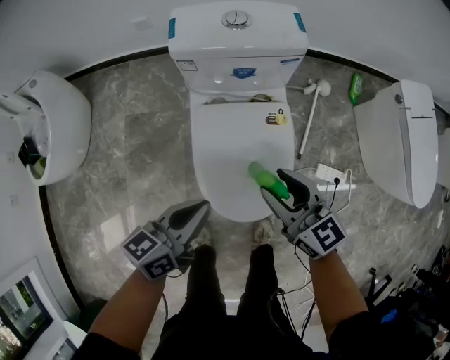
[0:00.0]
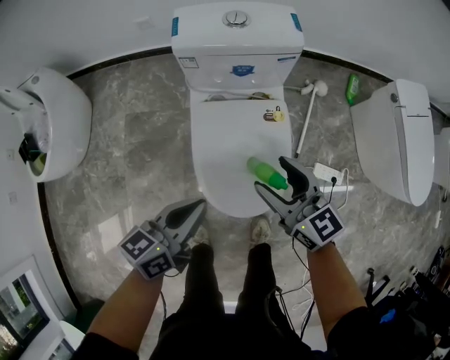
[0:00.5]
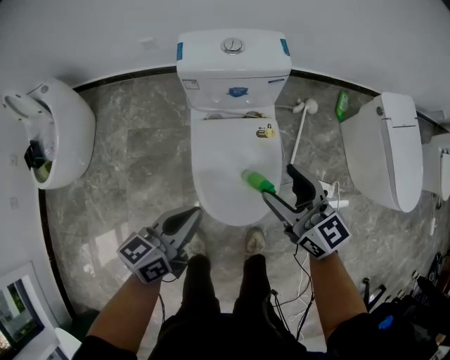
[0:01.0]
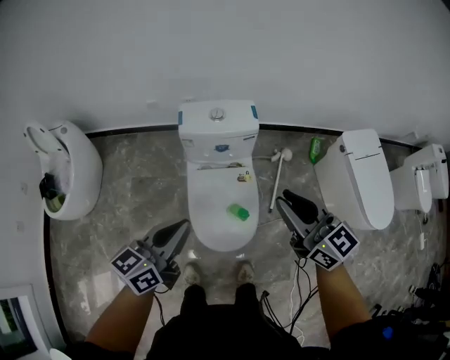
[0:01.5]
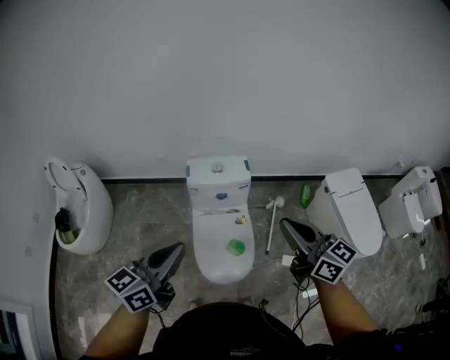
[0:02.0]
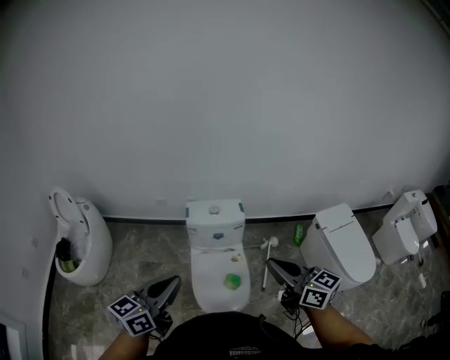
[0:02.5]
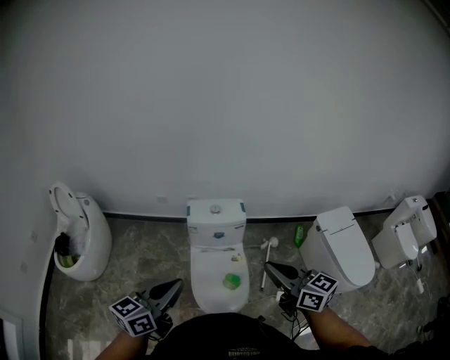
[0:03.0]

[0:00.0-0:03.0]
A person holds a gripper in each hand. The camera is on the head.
0:00.0 to 0:01.5: Both grippers move upward, about 35 cm. The right gripper closes its fingers.
0:01.5 to 0:03.0: The grippers both shift upward and backward by approximately 20 cm.

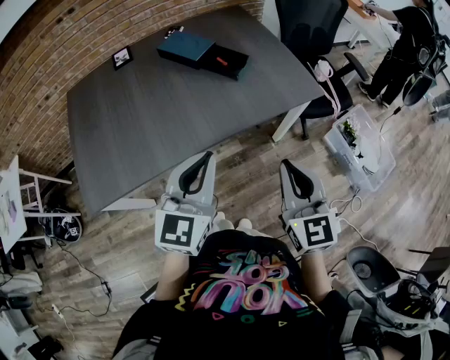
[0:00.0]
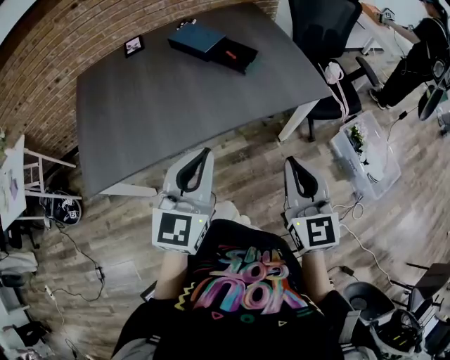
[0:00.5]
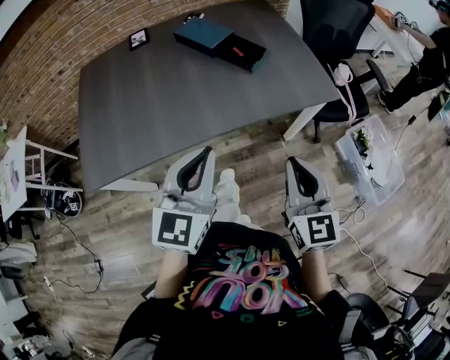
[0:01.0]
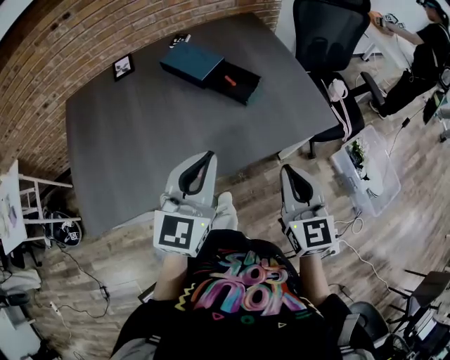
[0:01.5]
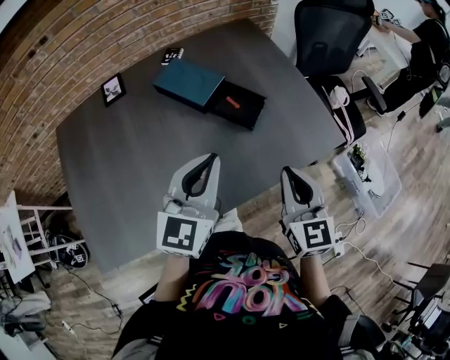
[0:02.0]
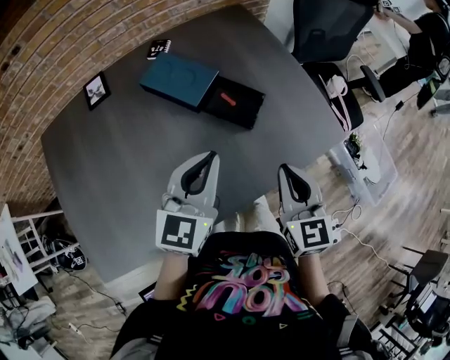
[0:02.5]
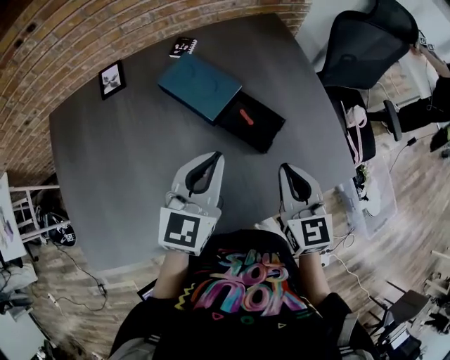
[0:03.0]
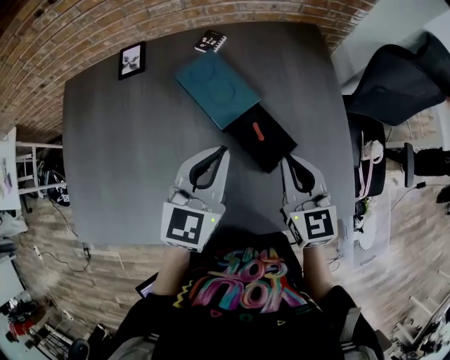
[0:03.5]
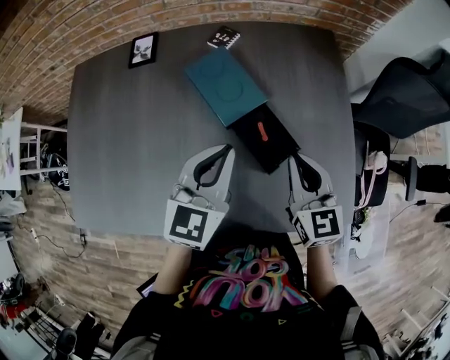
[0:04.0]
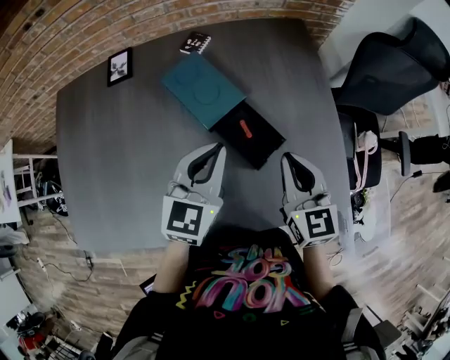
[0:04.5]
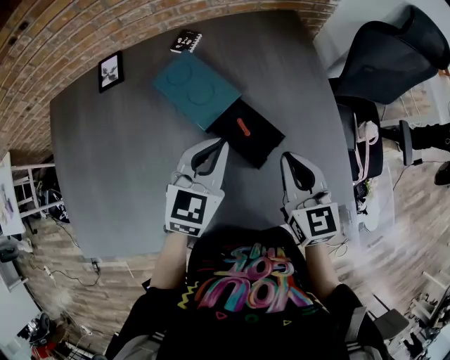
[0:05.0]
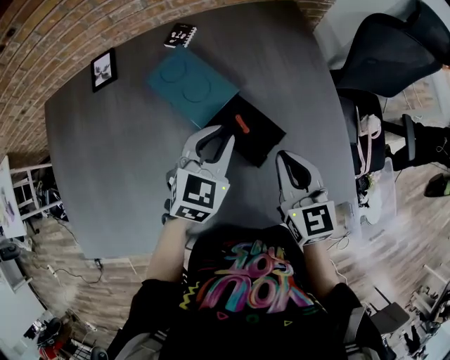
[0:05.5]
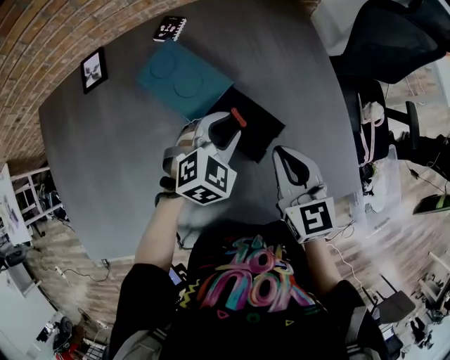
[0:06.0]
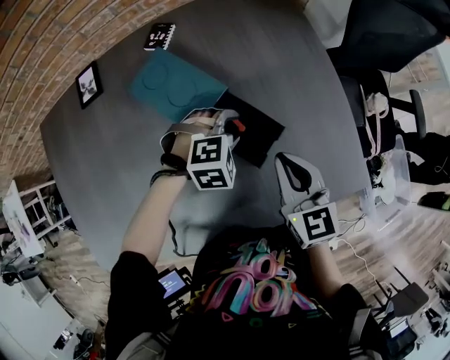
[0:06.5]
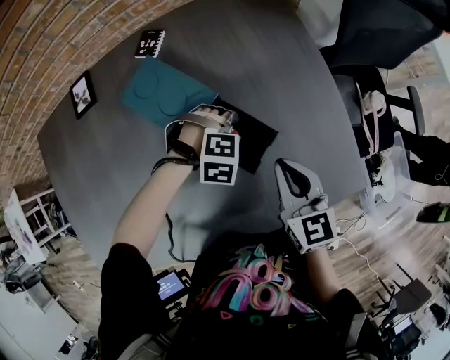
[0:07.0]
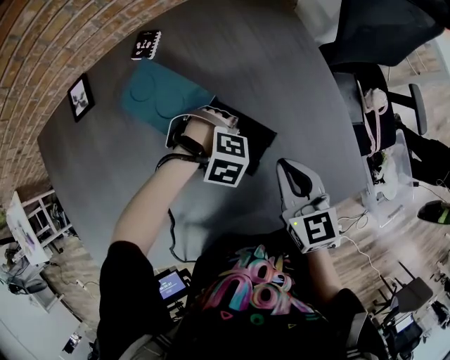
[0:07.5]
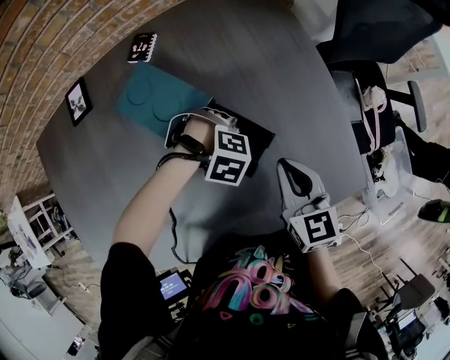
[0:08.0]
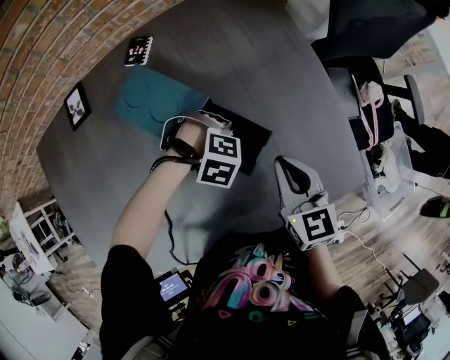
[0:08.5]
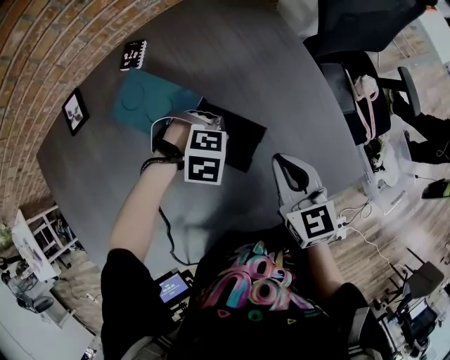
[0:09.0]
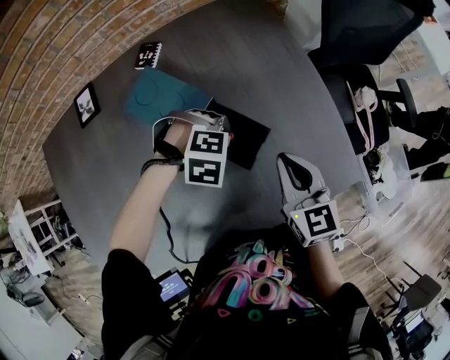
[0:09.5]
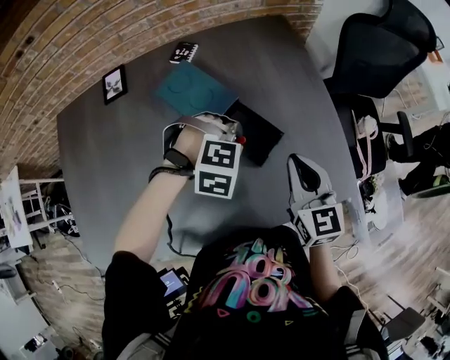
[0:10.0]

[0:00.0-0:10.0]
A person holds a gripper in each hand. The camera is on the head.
0:00.0 to 0:02.0: The grippers both shift forward by some 25 cm.
0:02.0 to 0:04.0: The right gripper moves roughly 25 cm, and turns by approximately 30 degrees; the left gripper changes place by roughly 15 cm, and rotates approximately 20 degrees.
0:04.0 to 0:06.0: The right gripper moves approximately 5 cm. The left gripper shifts approximately 15 cm downward and to the right, rotates about 50 degrees, and opens up.
0:06.0 to 0:08.0: The right gripper moves roughly 5 cm, while the left gripper is displaced downward by approximately 10 cm, and points its fingers some 40 degrees further downward.
0:08.0 to 0:10.0: The right gripper goes roughly 10 cm upward, while the left gripper shifts about 15 cm upward, and swivels roughly 30 degrees.

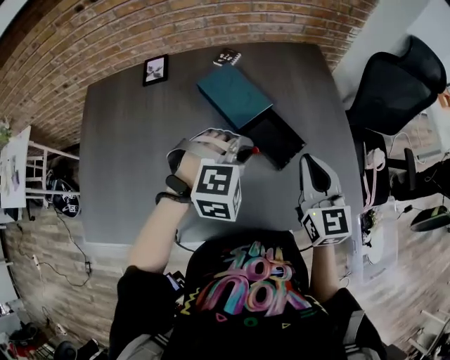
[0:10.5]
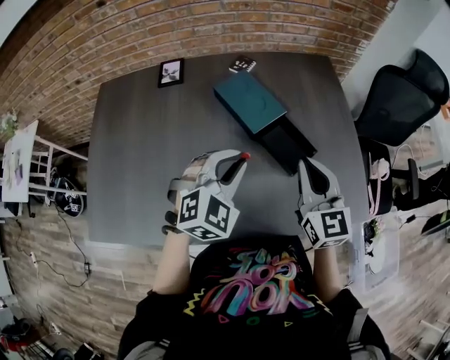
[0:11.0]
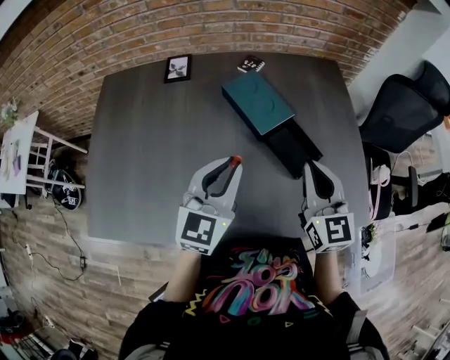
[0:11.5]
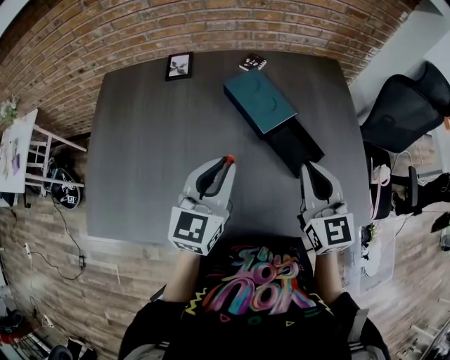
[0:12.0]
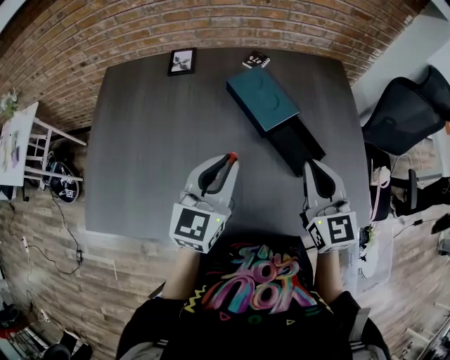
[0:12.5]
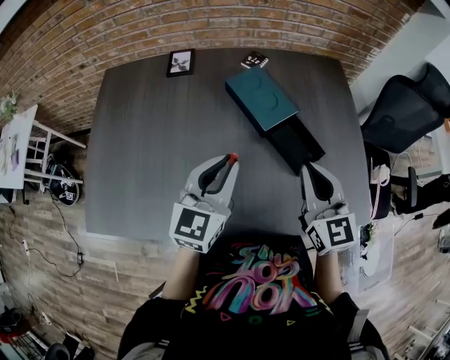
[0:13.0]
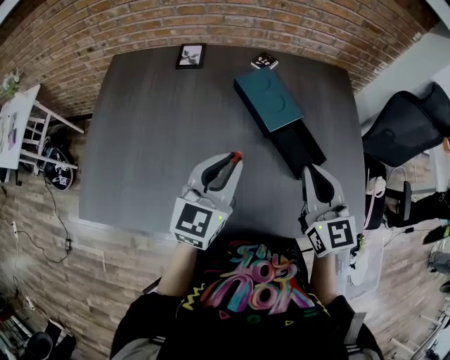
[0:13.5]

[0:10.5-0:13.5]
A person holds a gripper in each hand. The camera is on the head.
0:10.5 to 0:12.0: The right gripper goes roughly 10 cm to the left. The left gripper is displaced to the left and upward by some 15 cm, and rolls counterclockwise, seen from behind, by about 70 degrees.
0:12.0 to 0:13.5: The grippers stay close to where they were, moving slightly.

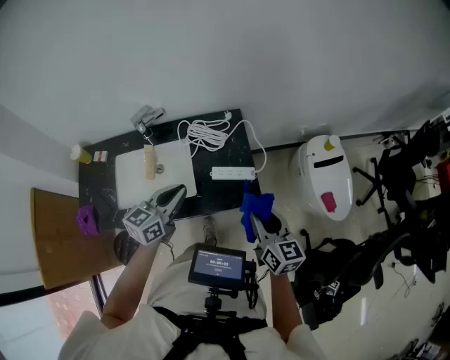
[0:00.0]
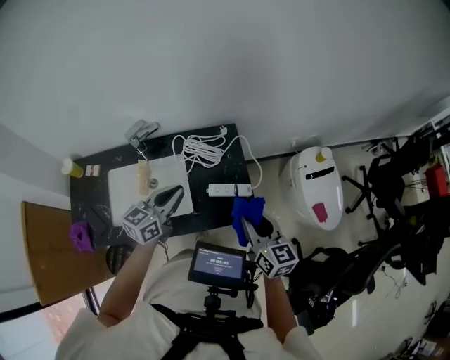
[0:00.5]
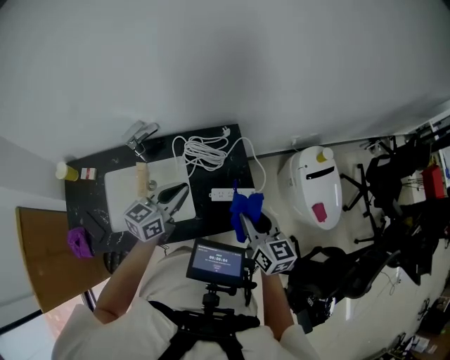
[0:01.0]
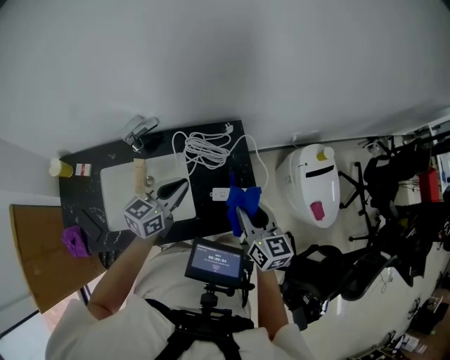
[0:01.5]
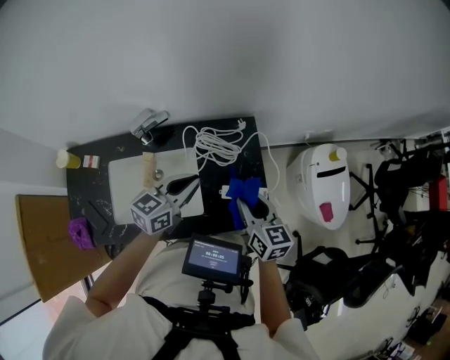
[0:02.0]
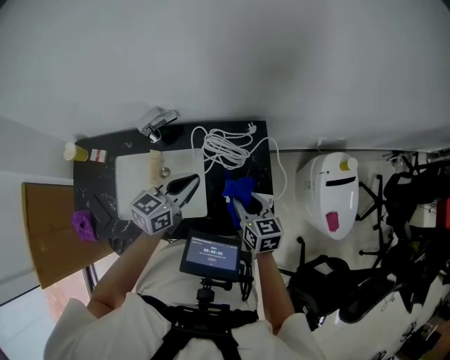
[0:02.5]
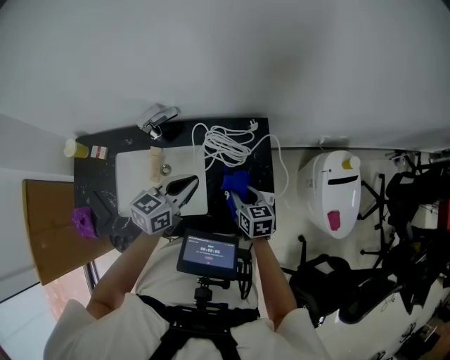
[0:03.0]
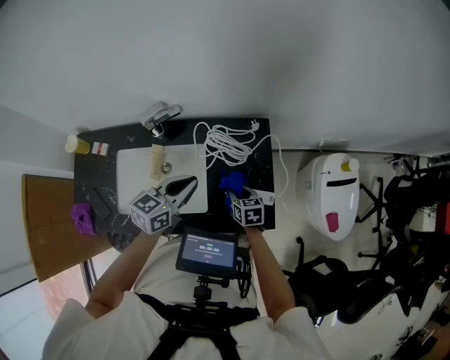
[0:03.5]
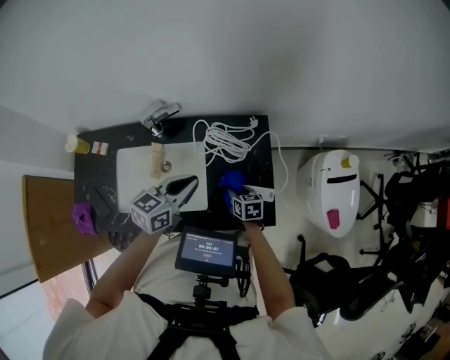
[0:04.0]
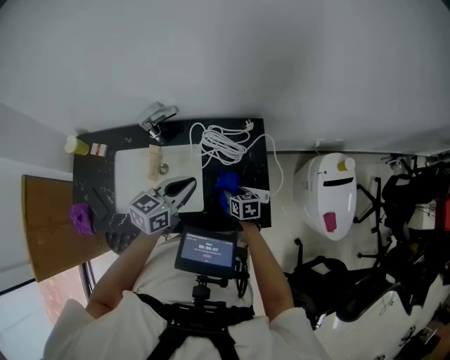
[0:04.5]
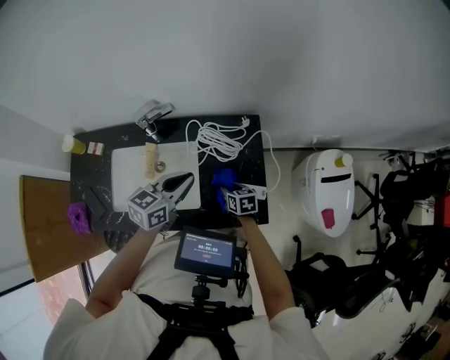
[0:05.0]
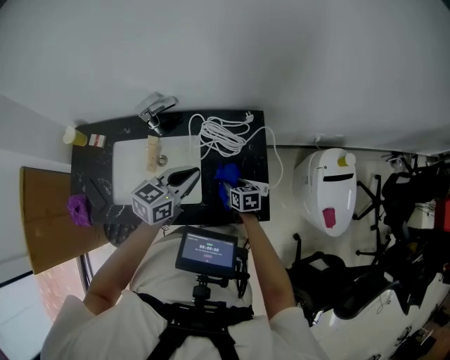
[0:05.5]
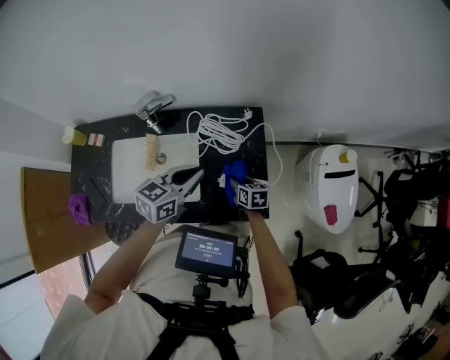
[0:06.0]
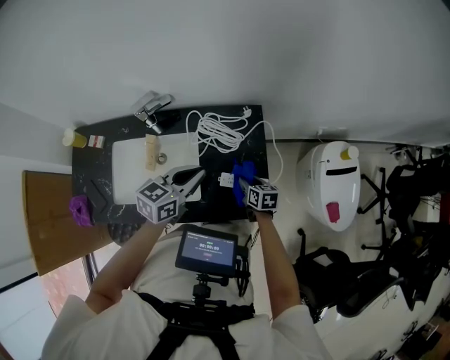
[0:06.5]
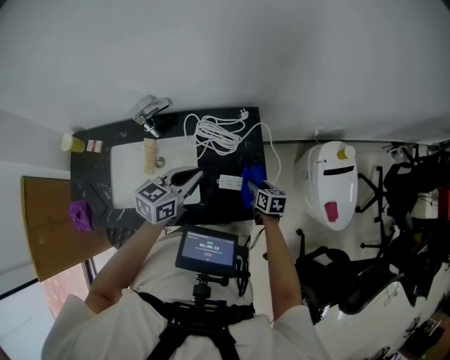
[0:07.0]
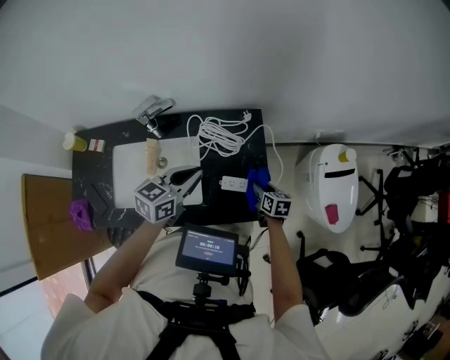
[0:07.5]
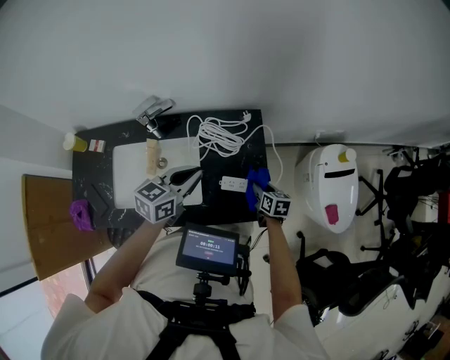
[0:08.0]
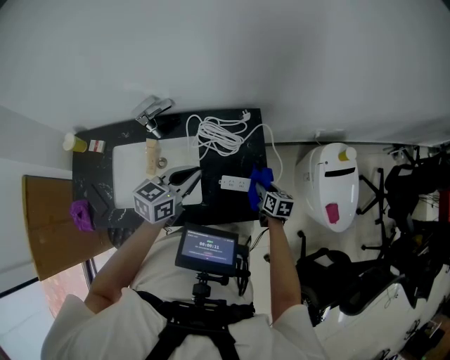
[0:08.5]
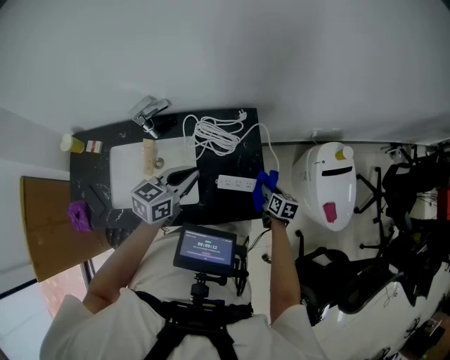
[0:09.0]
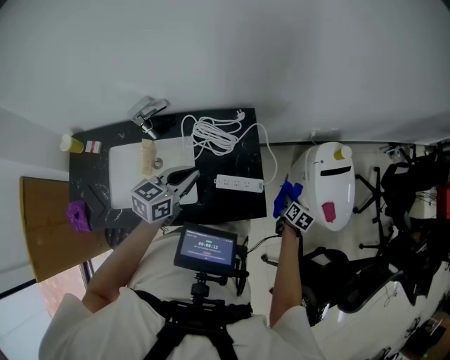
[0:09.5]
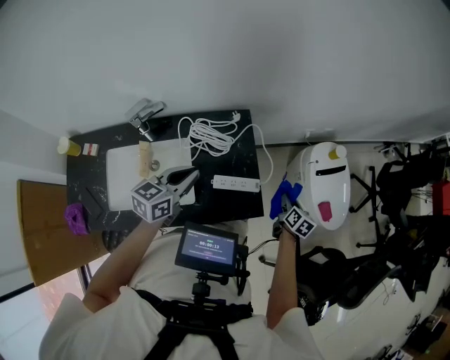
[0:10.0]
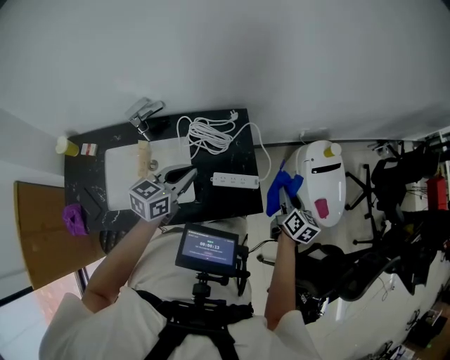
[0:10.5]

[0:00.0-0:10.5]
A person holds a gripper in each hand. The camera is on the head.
0:00.0 to 0:02.0: Both grippers travel together forward and to the left, some 25 cm.
0:02.0 to 0:04.0: The right gripper heads downward, covering approximately 25 cm, and turns by approximately 30 degrees.
0:04.0 to 0:06.5: Both grippers move to the right, some 10 cm.
0:06.5 to 0:08.5: The right gripper shifts about 5 cm to the right.
0:08.5 to 0:10.5: The right gripper shifts some 20 cm upward and to the right, and turns by about 30 degrees.
